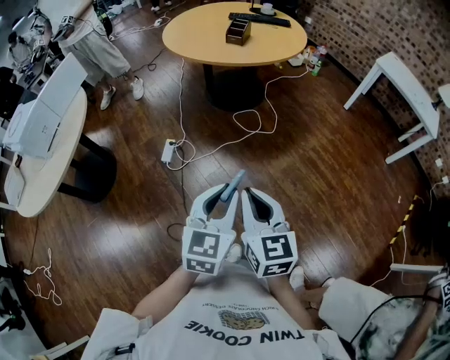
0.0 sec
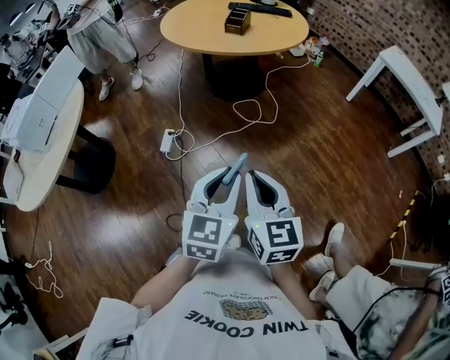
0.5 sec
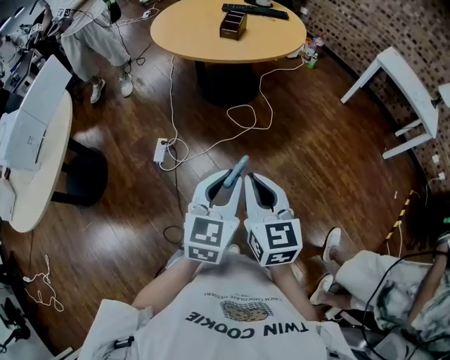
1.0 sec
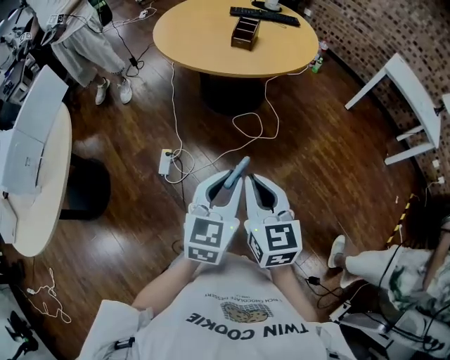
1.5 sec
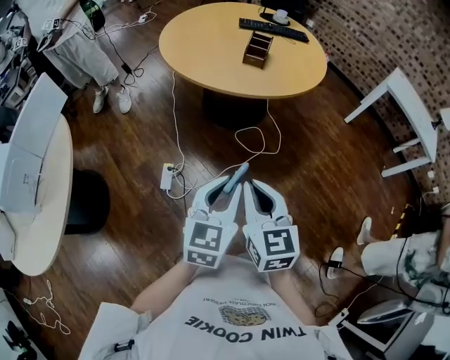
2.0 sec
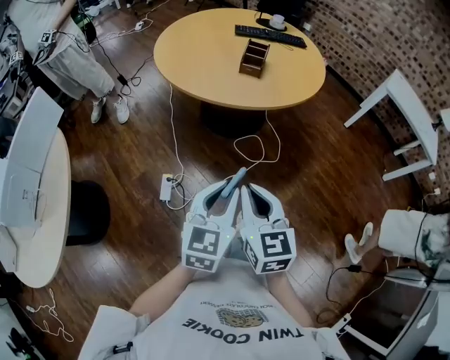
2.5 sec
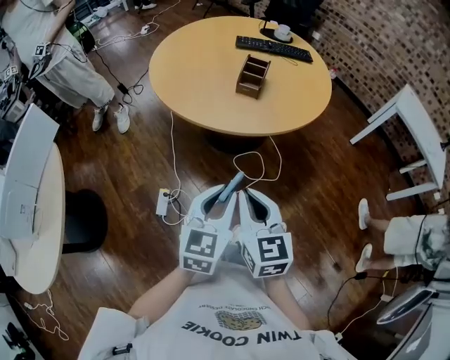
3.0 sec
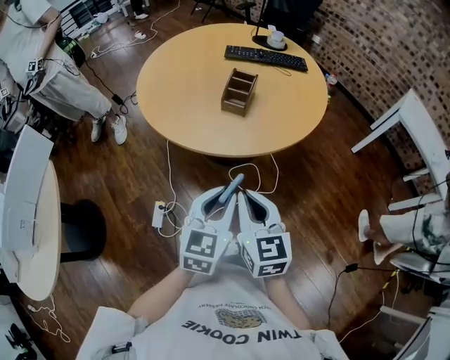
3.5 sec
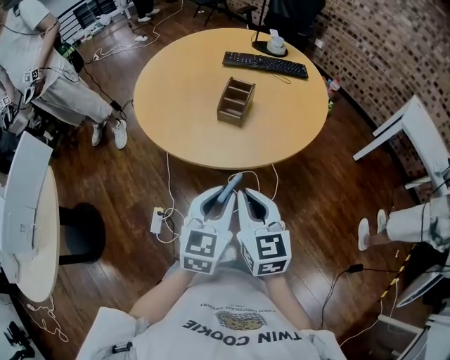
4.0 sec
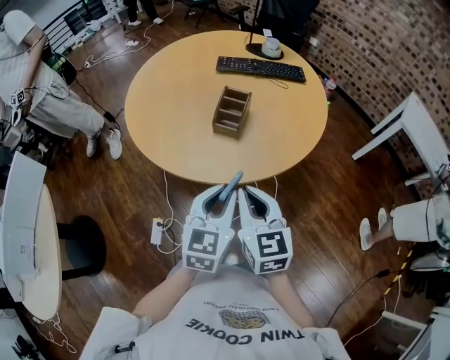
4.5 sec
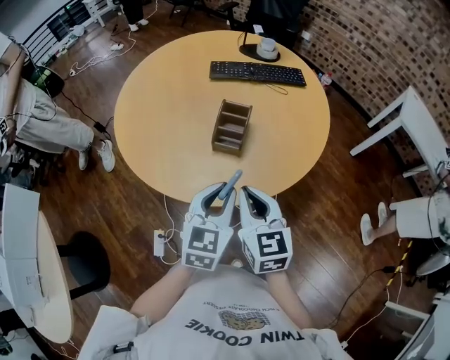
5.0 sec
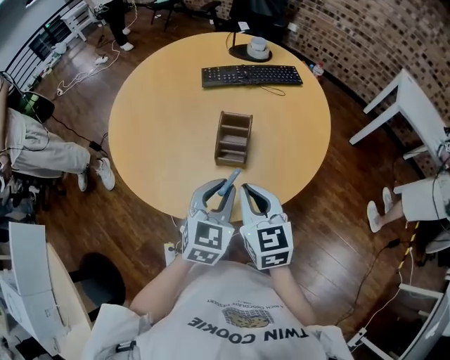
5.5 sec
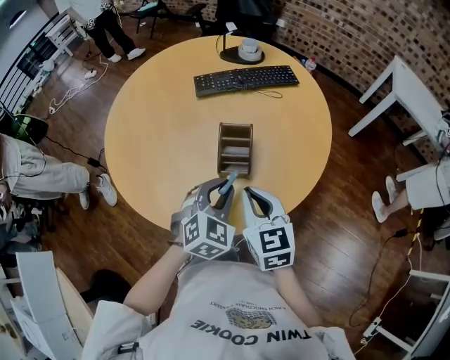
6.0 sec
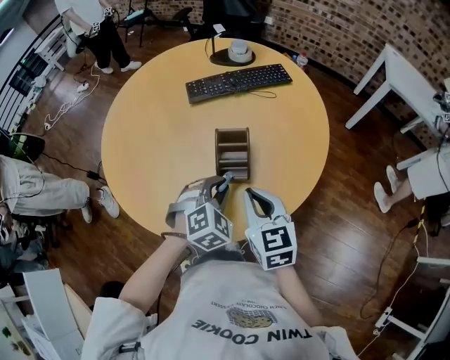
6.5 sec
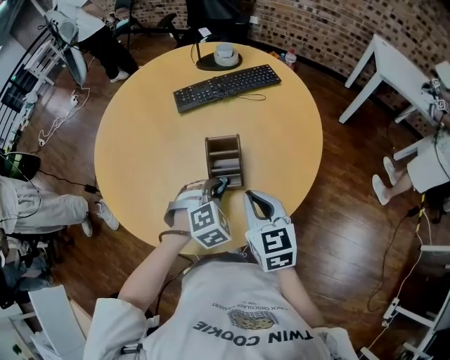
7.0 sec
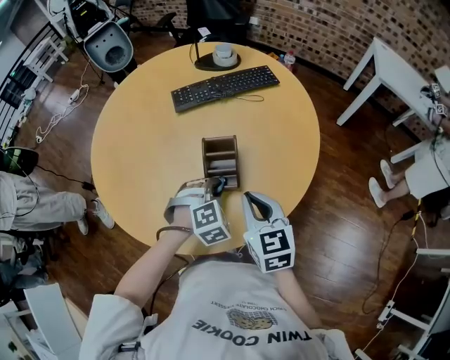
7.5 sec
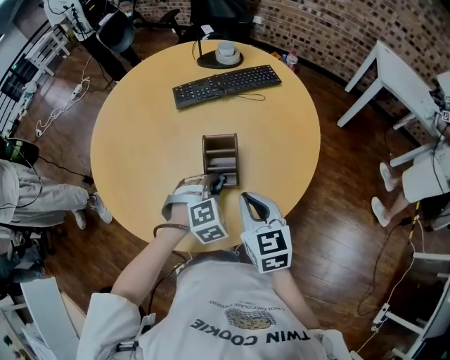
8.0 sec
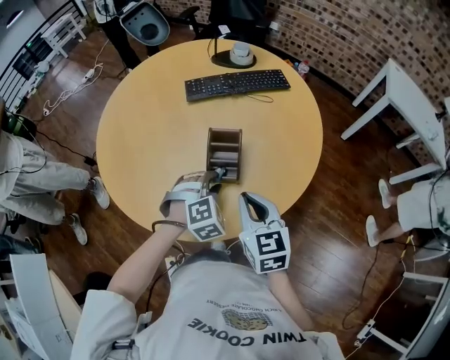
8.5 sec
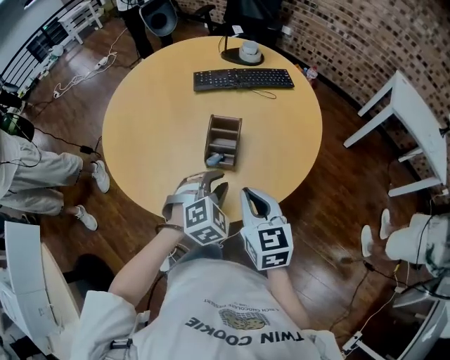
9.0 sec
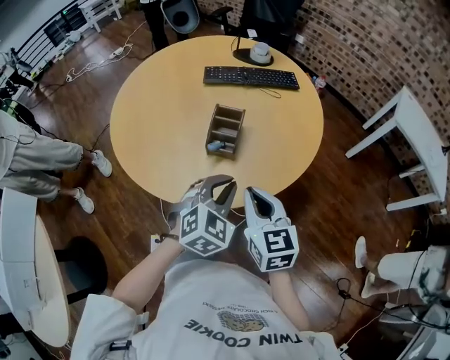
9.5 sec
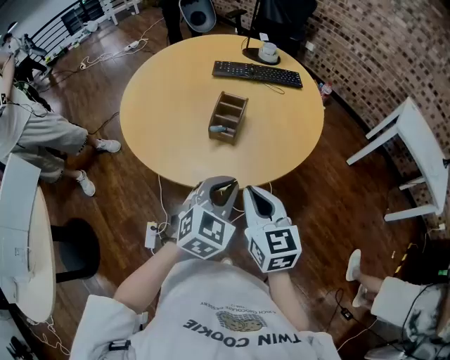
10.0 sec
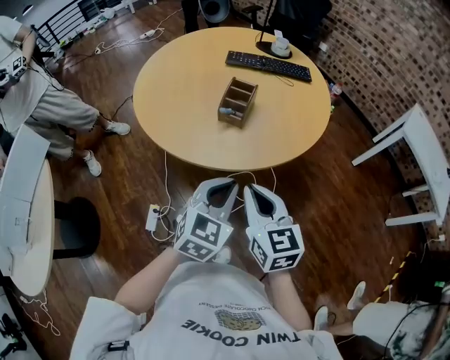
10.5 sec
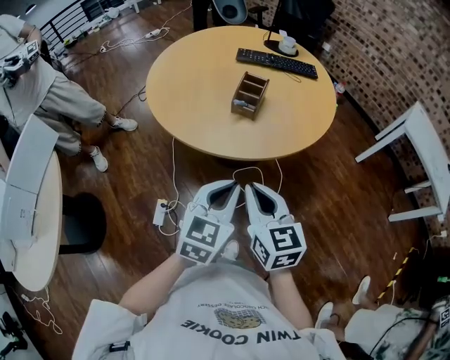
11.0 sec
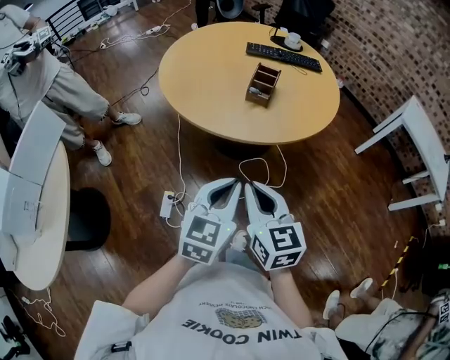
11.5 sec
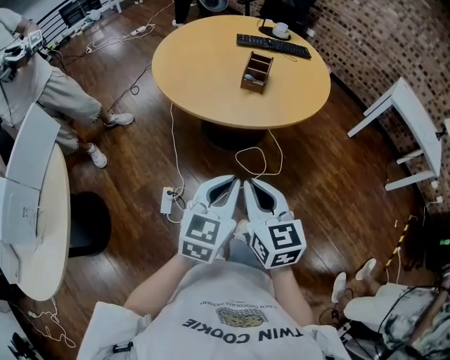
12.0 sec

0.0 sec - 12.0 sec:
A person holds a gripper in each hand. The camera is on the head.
0.0 sec - 2.0 sec: Both grippers move forward and to the left, some 30 cm.
2.0 sec - 4.0 sec: The grippers both shift forward and to the right by roughly 35 cm.
4.0 sec - 6.0 sec: The grippers both shift forward by some 25 cm. The left gripper rotates approximately 40 degrees.
6.0 sec - 8.0 sec: The left gripper goes about 10 cm downward, and swivels about 30 degrees.
8.0 sec - 10.0 sec: The left gripper goes some 25 cm backward and upward, rotates around the line of its fingers by some 40 degrees, counterclockwise from behind, and closes its fingers; the right gripper travels backward by approximately 15 cm.
10.0 sec - 12.0 sec: The grippers both shift backward and to the left by approximately 30 cm. The left gripper changes its angle by about 30 degrees.

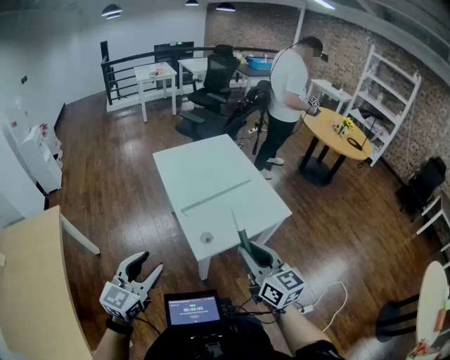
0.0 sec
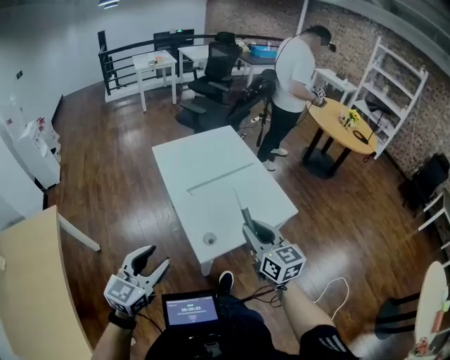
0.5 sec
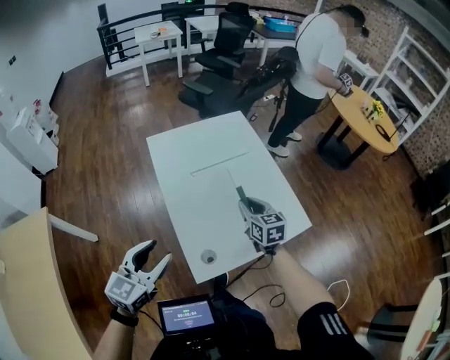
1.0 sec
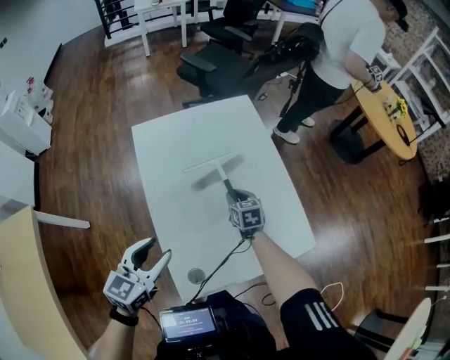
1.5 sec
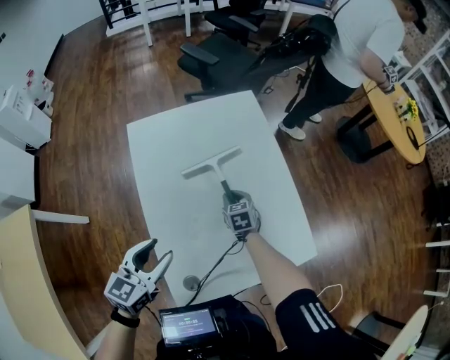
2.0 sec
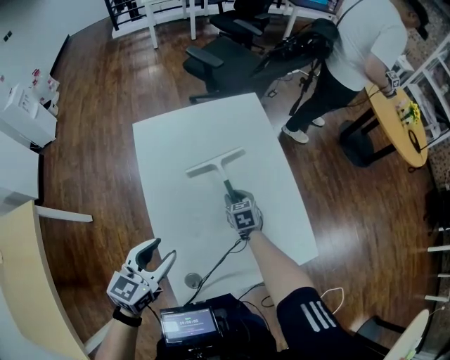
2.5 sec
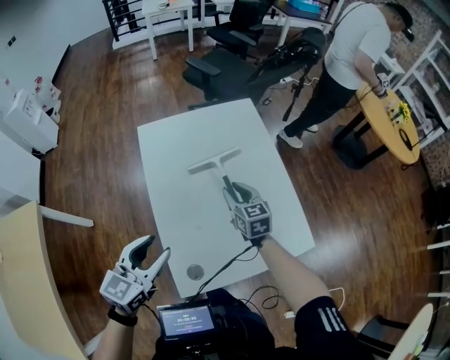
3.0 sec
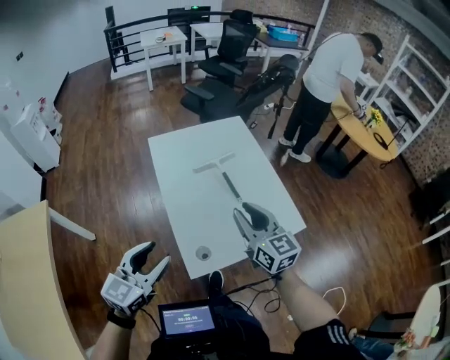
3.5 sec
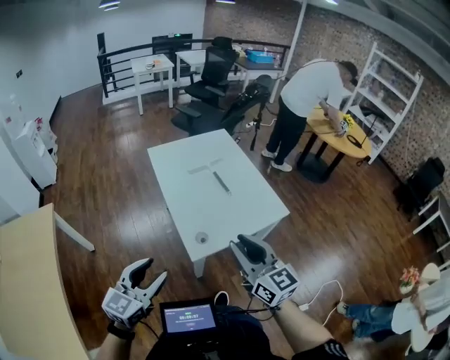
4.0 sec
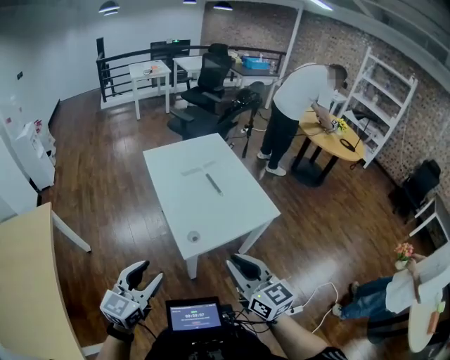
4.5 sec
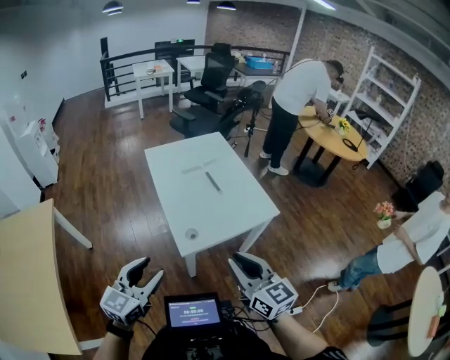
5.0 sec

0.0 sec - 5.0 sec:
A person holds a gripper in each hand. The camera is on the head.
0.0 sec - 2.5 sec: The pair of grippers is taken forward, about 50 cm. The right gripper is displaced downward by approximately 40 cm, and points its fingers some 40 degrees further downward, while the left gripper heads downward, covering about 15 cm, and turns by about 20 degrees.
2.5 sec - 5.0 sec: The two grippers travel together, backward, about 50 cm. The right gripper goes about 40 cm upward, and tilts its fingers roughly 40 degrees upward.

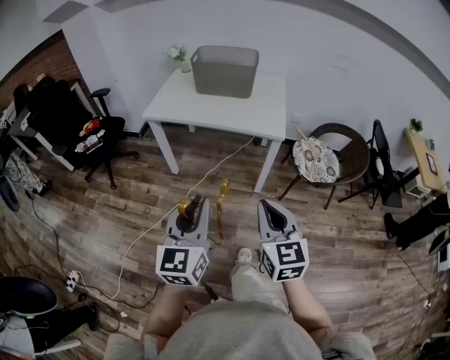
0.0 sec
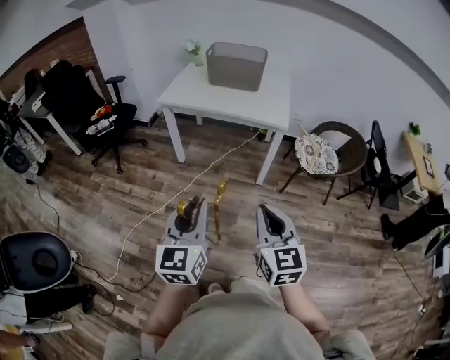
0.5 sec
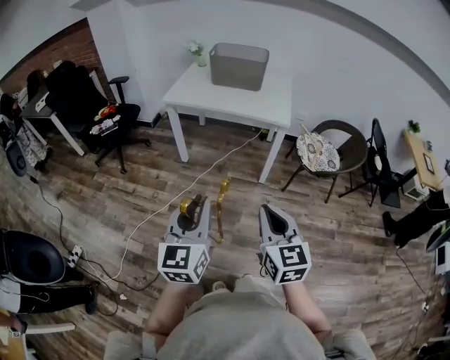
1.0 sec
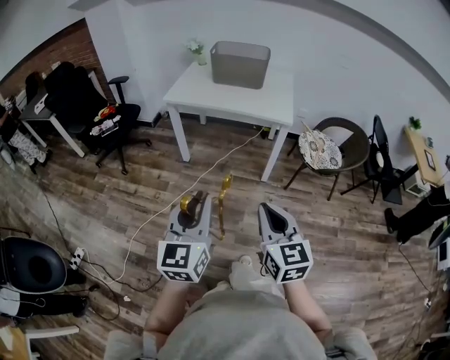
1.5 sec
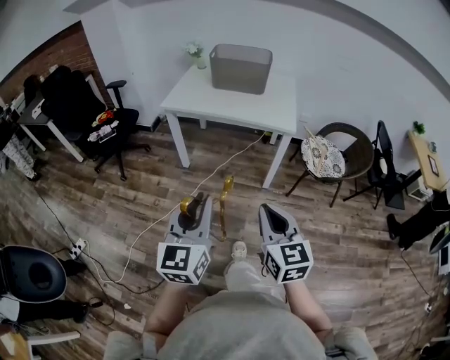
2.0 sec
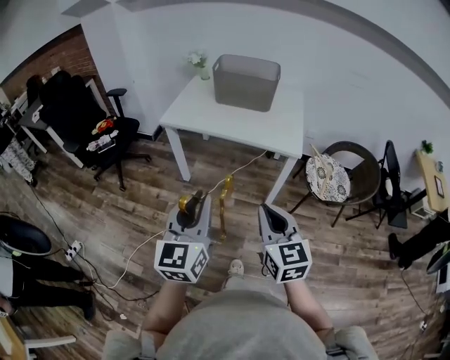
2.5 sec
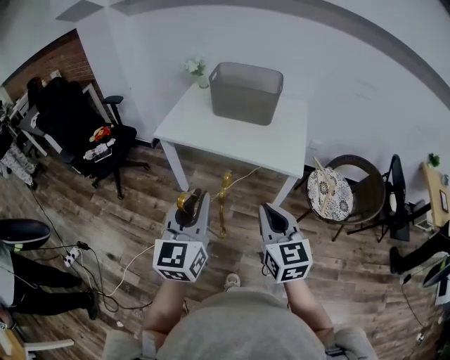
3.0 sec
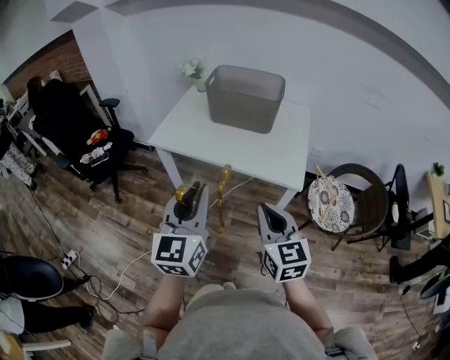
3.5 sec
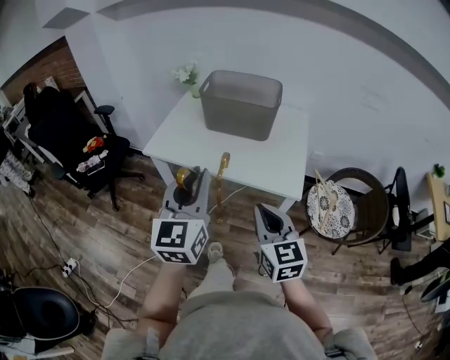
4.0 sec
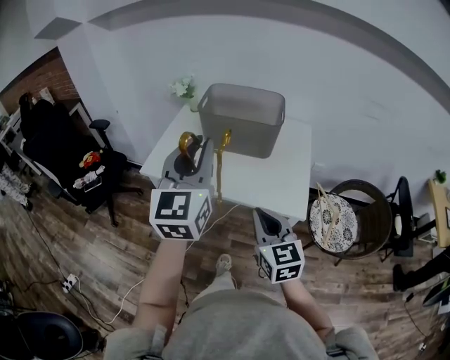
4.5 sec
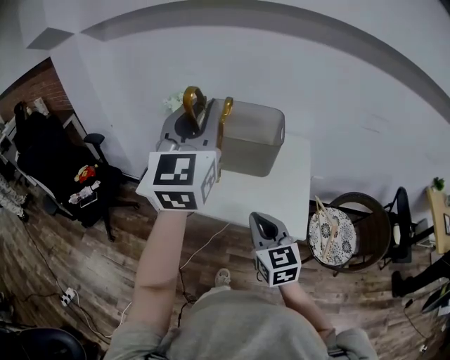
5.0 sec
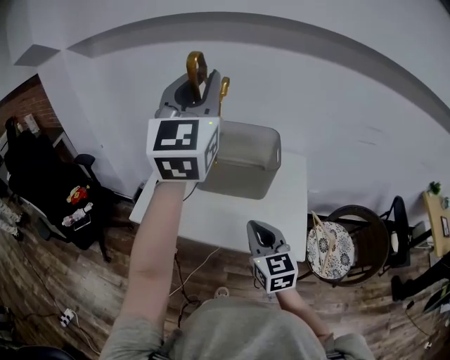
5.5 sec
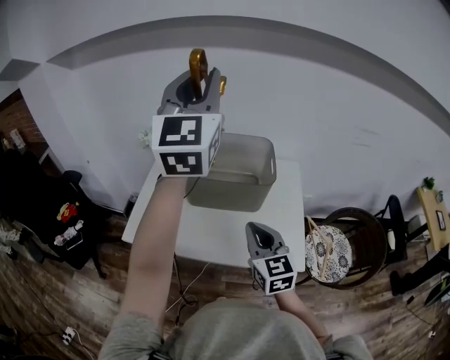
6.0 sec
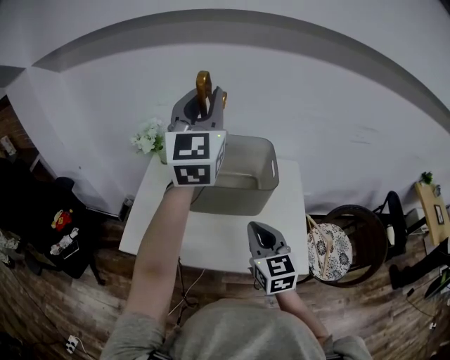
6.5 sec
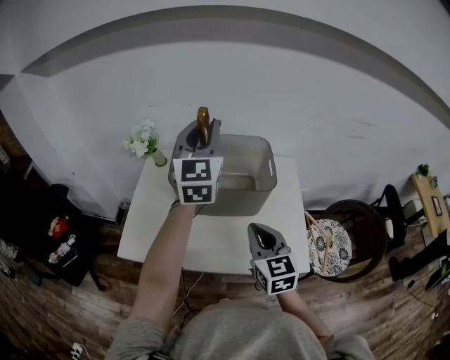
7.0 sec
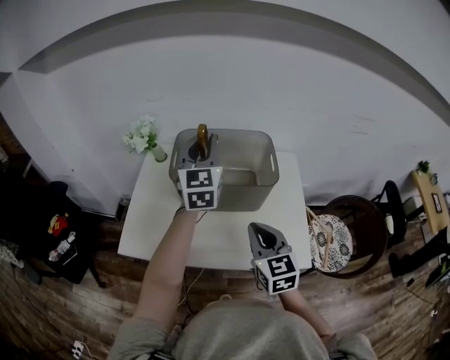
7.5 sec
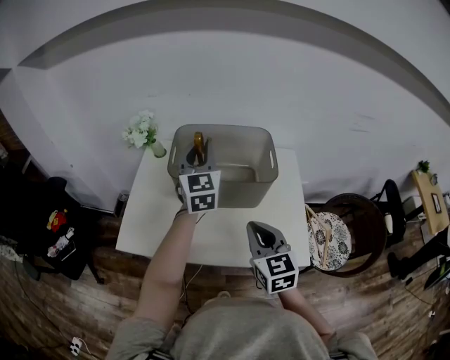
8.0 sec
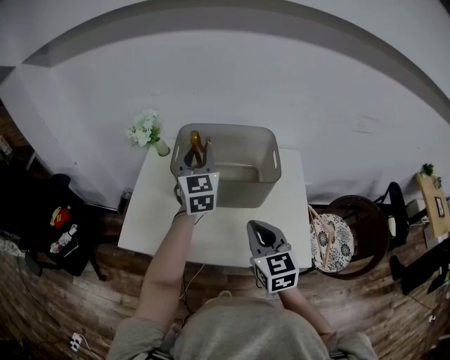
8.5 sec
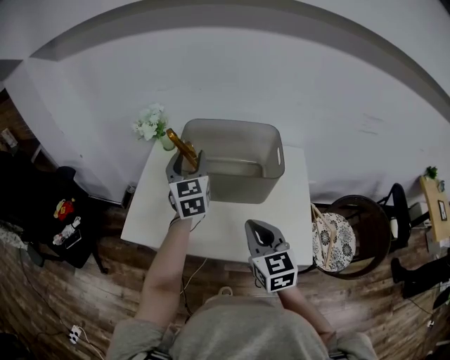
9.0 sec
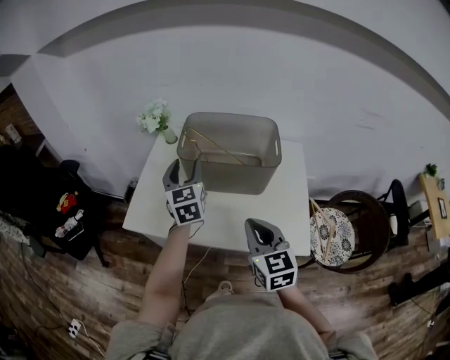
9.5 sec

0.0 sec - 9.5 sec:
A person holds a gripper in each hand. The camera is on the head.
0.0 sec - 2.0 sec: The grippers both shift backward and to the left by approximately 10 cm.
2.0 sec - 4.0 sec: Both grippers travel together forward, roughly 35 cm.
4.0 sec - 5.5 sec: The left gripper goes some 40 cm forward and upward, and changes its angle by roughly 20 degrees. Meanwhile the right gripper moves forward, approximately 20 cm.
5.5 sec - 7.5 sec: The left gripper goes some 30 cm downward and forward, while the right gripper is displaced forward by some 10 cm.
7.5 sec - 9.5 sec: The right gripper heads backward, covering about 5 cm, while the left gripper heads downward, to the left and backward, covering some 15 cm, turns by roughly 20 degrees, and opens its fingers.
